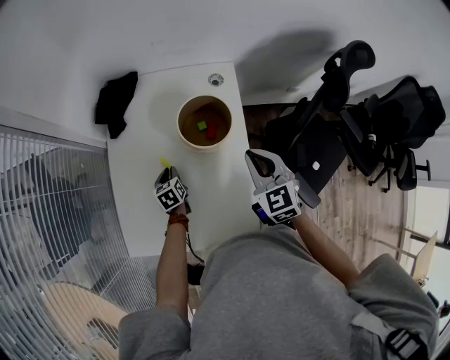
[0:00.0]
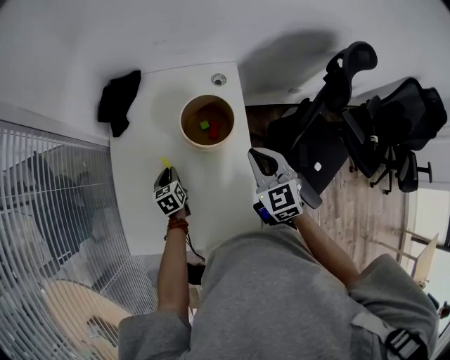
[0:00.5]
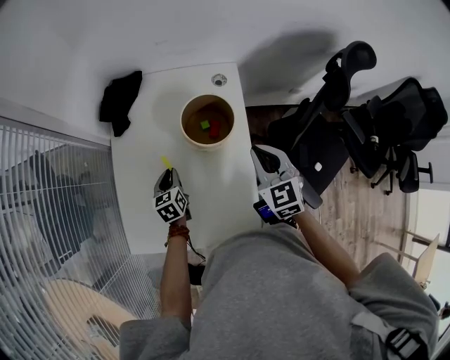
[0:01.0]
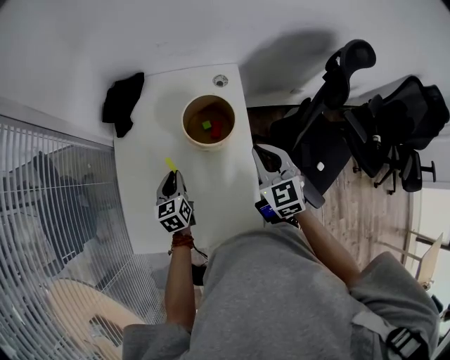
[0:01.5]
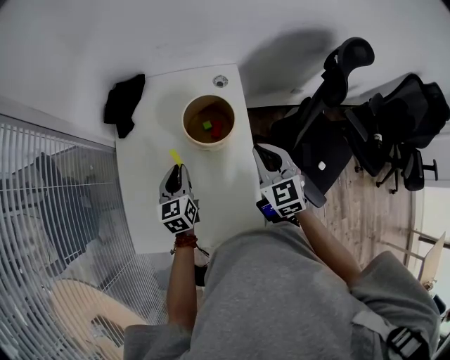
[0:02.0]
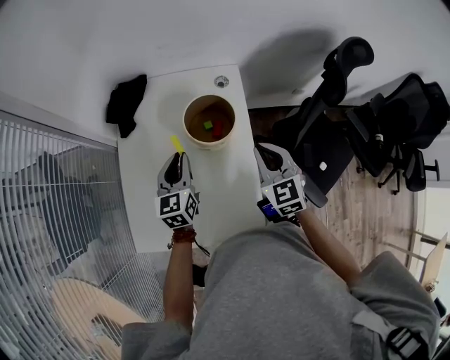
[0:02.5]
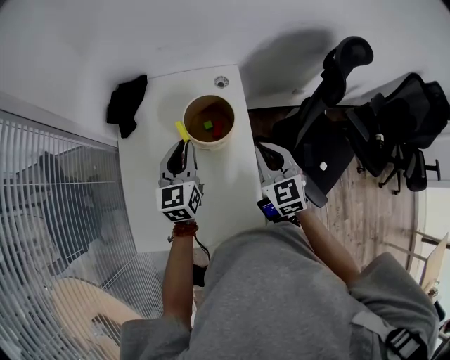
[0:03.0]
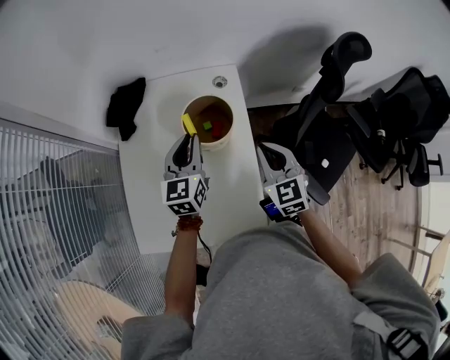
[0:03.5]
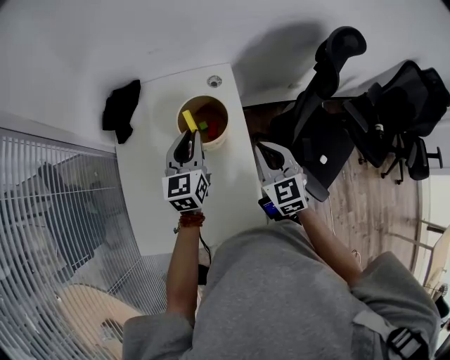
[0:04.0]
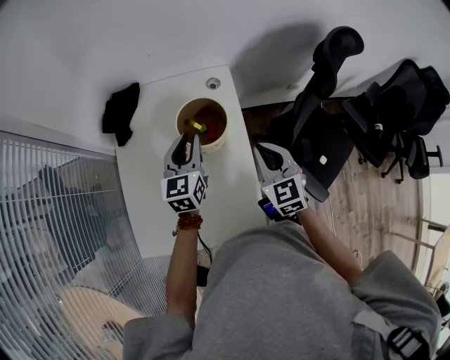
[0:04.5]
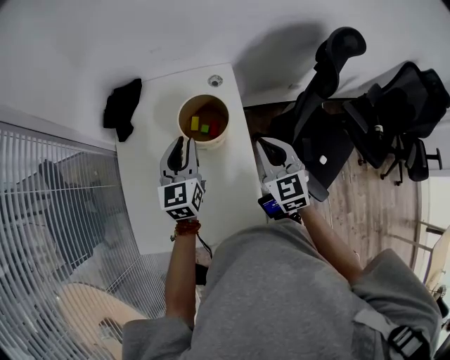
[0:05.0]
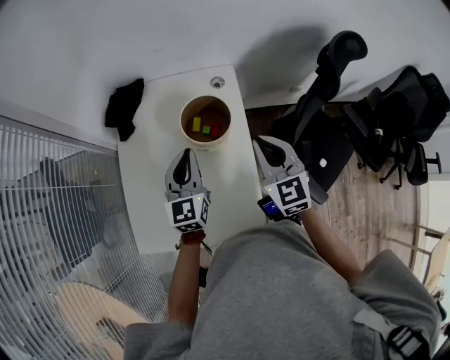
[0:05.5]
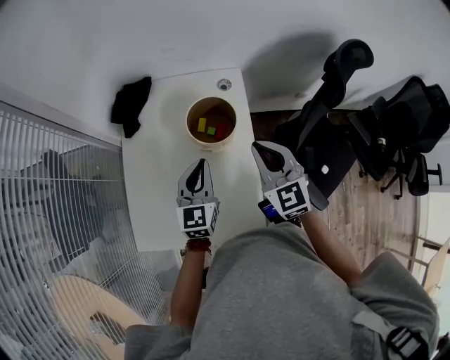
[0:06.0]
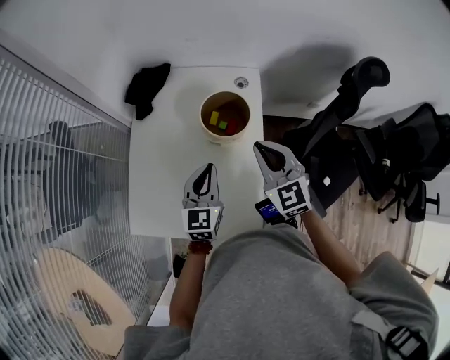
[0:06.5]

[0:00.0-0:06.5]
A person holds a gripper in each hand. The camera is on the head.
0:00.0 to 0:02.0: The left gripper goes about 15 cm upward, and changes its angle by some 30 degrees.
0:02.0 to 0:04.5: The left gripper is displaced upward, to the right and forward by some 15 cm.
0:04.5 to 0:06.5: The left gripper travels backward by roughly 10 cm, and closes, while the right gripper goes some 10 cm to the left and upward.

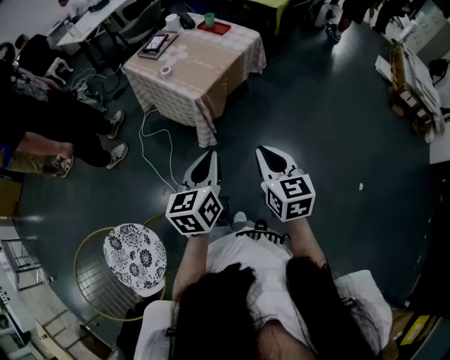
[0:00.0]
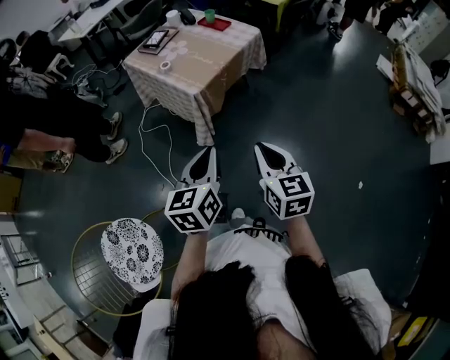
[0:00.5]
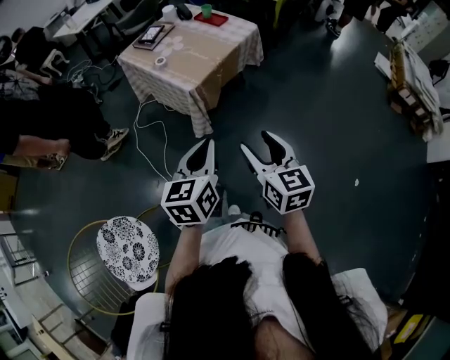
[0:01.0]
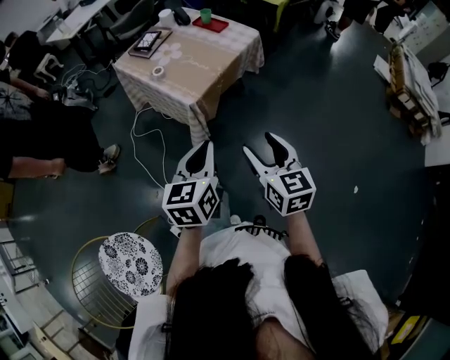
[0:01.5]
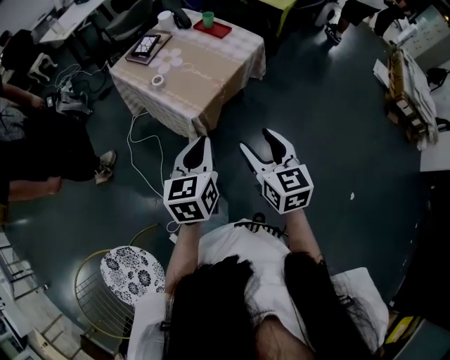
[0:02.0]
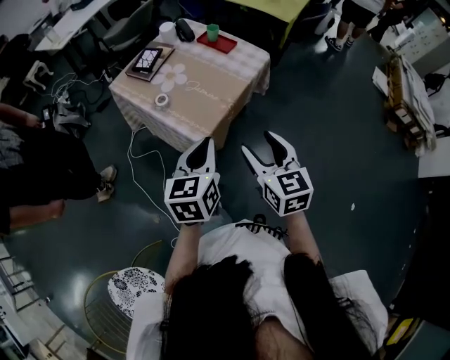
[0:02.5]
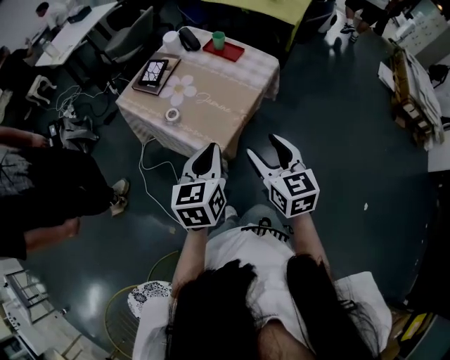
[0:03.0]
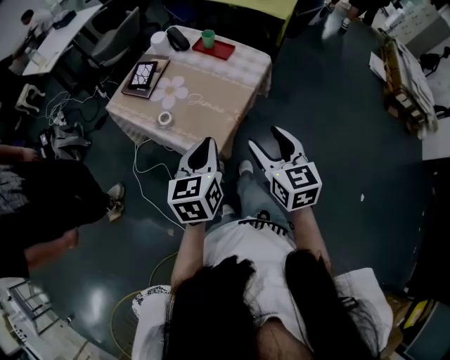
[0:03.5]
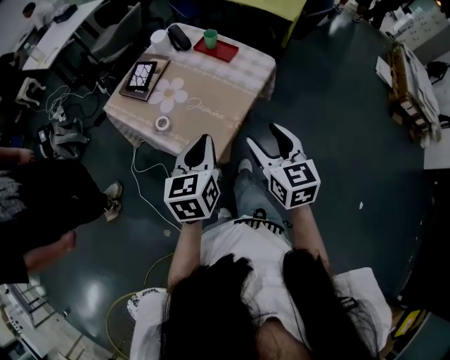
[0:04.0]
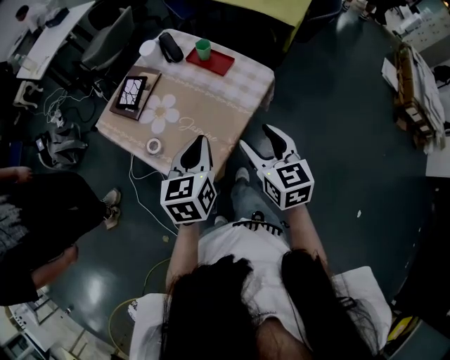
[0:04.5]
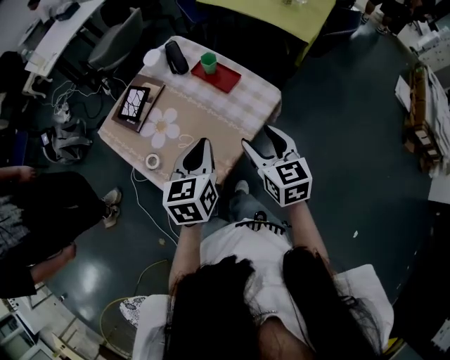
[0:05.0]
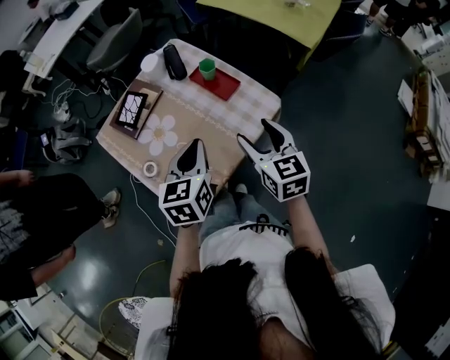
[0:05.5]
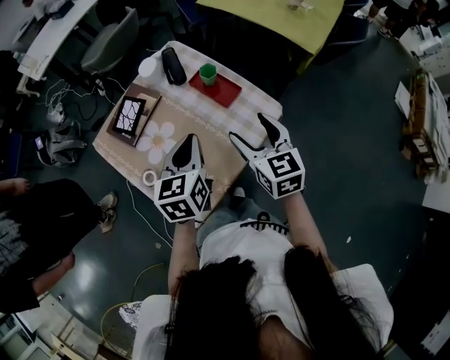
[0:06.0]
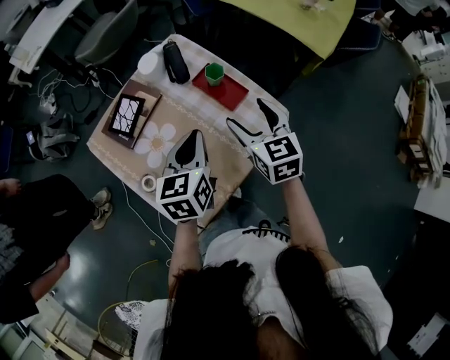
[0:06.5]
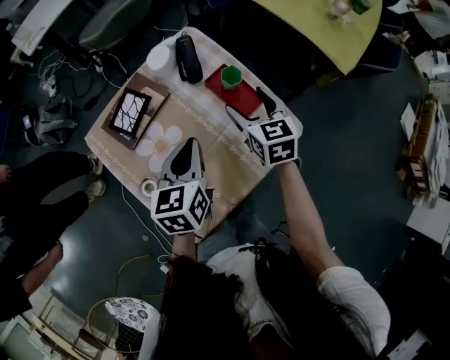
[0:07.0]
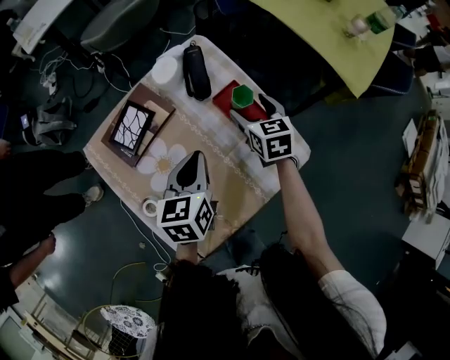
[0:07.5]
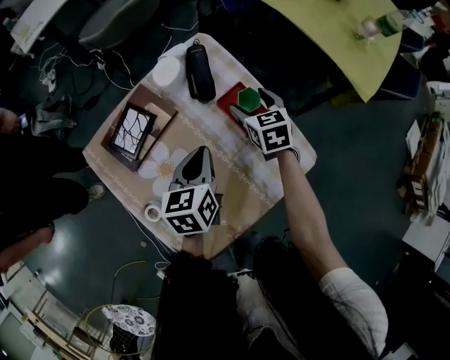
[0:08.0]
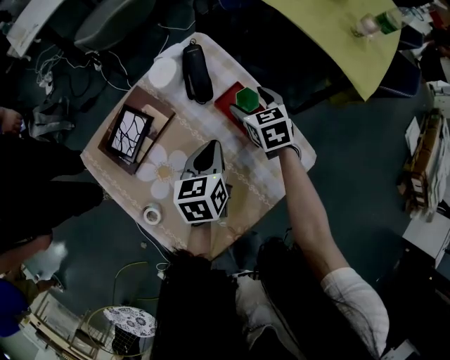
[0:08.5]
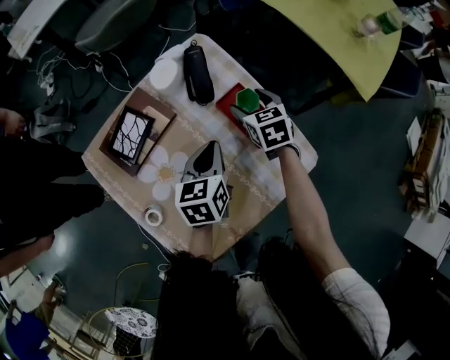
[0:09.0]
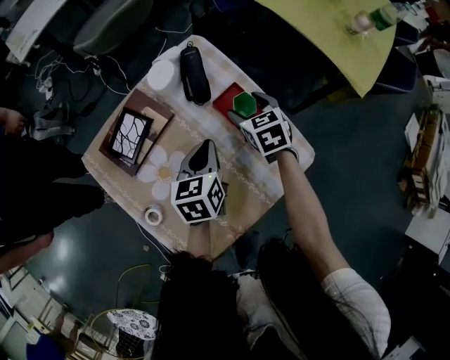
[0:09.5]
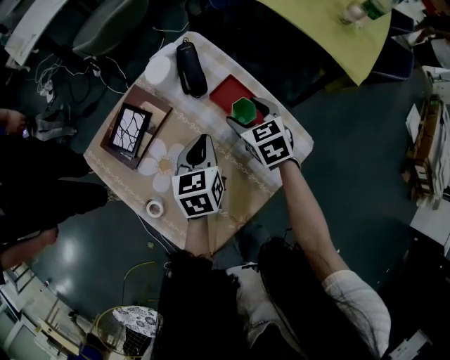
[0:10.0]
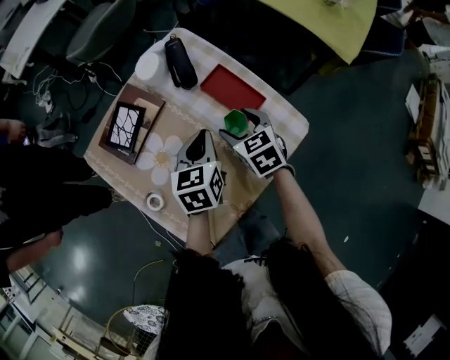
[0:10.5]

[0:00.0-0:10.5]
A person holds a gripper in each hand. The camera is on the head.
0:00.0 to 0:02.0: The two grippers go roughly 15 cm forward. The right gripper opens.
0:02.0 to 0:04.0: The grippers both shift forward by about 20 cm.
0:04.0 to 0:06.5: Both grippers move forward, roughly 35 cm.
0:06.5 to 0:08.5: The left gripper moves downward and forward, roughly 15 cm. Meanwhile the right gripper travels forward and downward by about 25 cm.
0:08.5 to 0:10.5: The right gripper travels backward by about 15 cm.

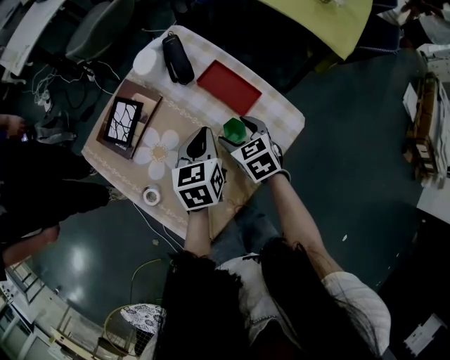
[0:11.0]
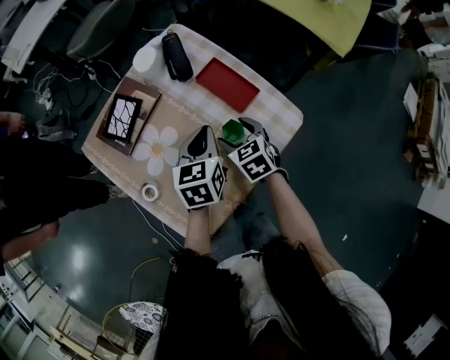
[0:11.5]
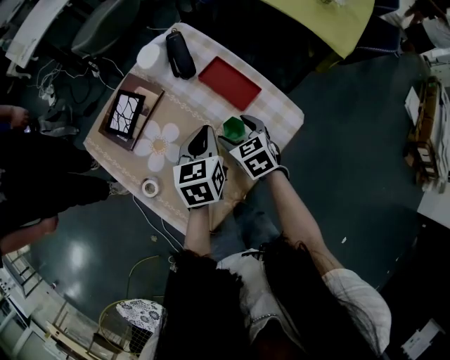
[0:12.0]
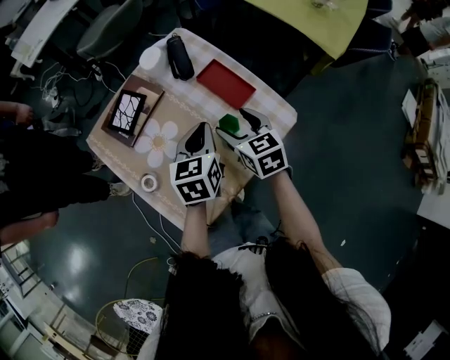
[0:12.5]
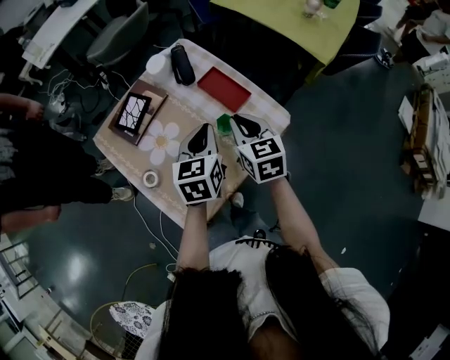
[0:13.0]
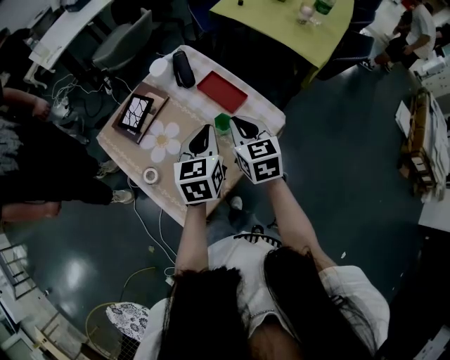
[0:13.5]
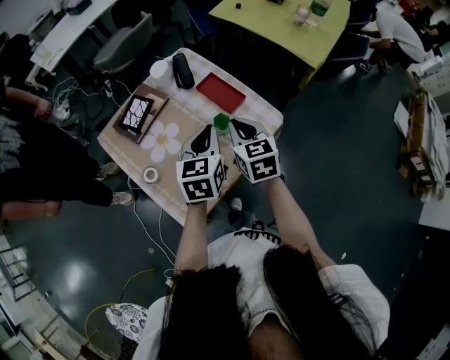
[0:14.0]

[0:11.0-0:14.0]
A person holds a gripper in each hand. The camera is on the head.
0:11.0 to 0:12.5: The left gripper moves some 5 cm. Meanwhile the right gripper moves upward, approximately 10 cm.
0:12.5 to 0:14.0: The grippers both shift upward and backward by roughly 10 cm. The right gripper closes up.

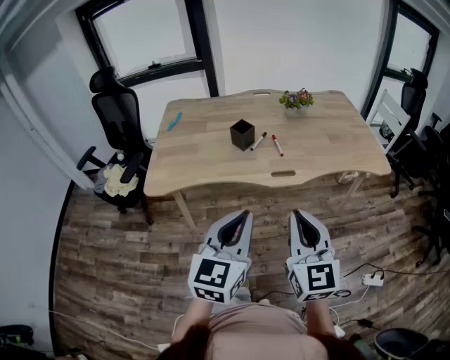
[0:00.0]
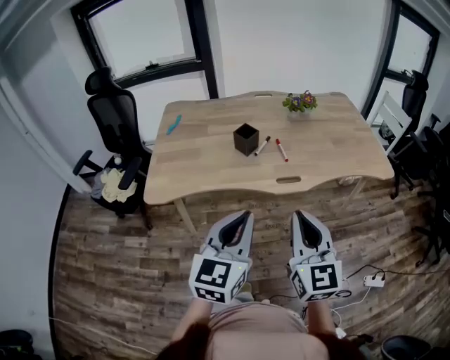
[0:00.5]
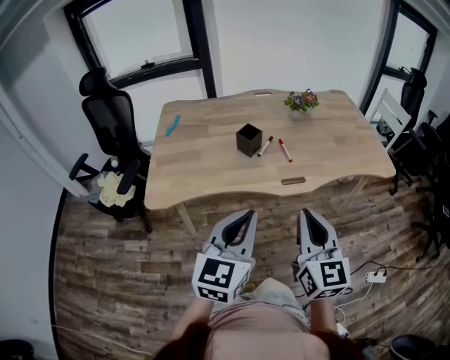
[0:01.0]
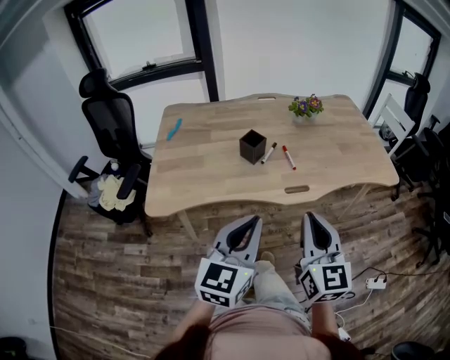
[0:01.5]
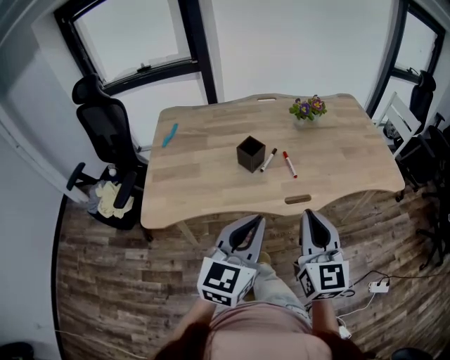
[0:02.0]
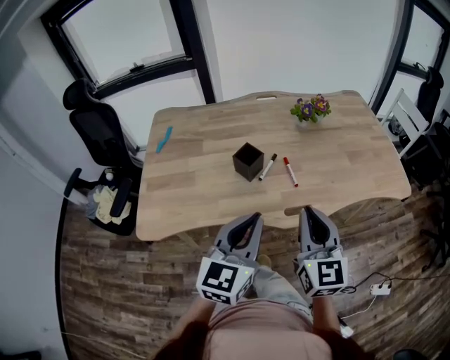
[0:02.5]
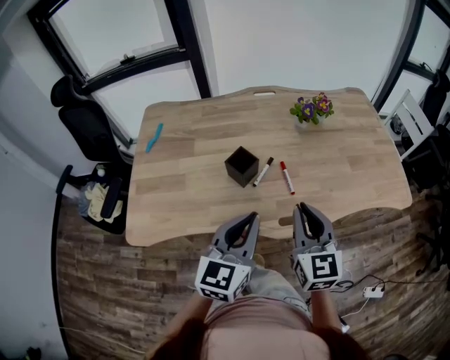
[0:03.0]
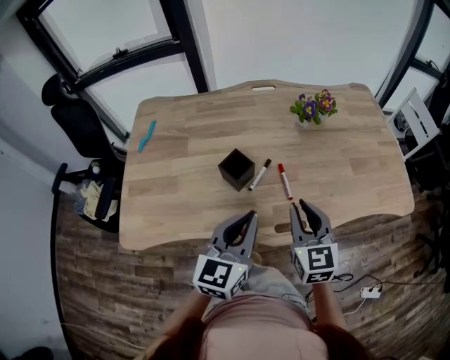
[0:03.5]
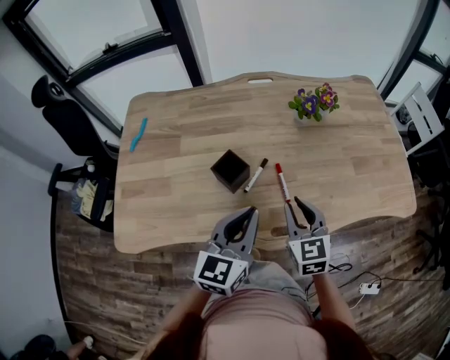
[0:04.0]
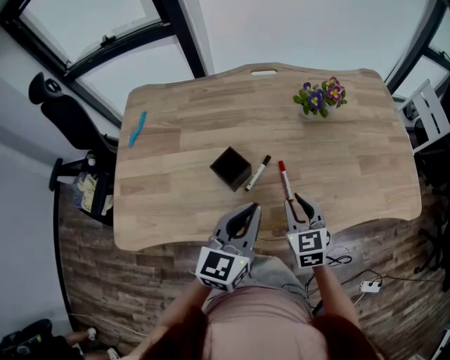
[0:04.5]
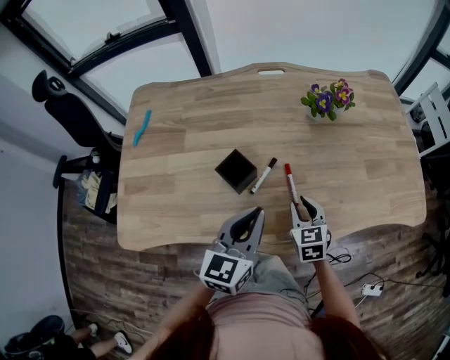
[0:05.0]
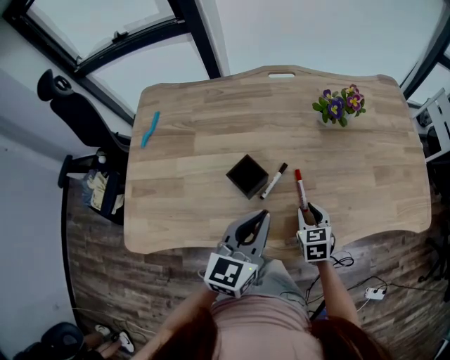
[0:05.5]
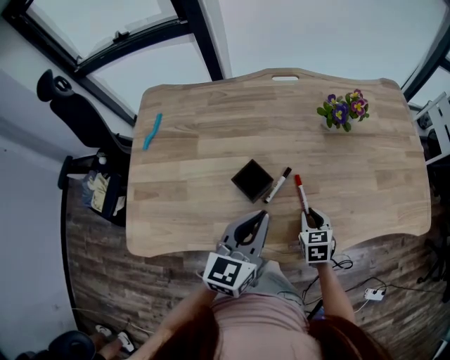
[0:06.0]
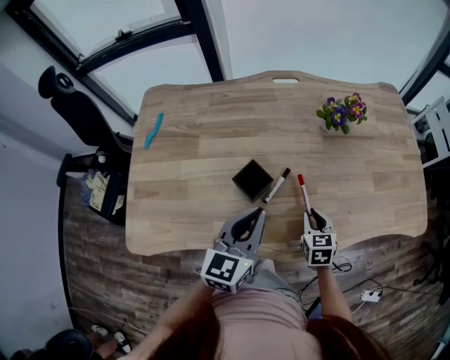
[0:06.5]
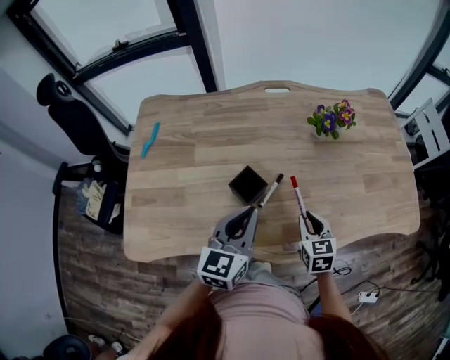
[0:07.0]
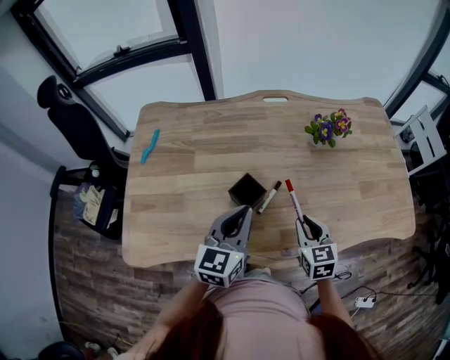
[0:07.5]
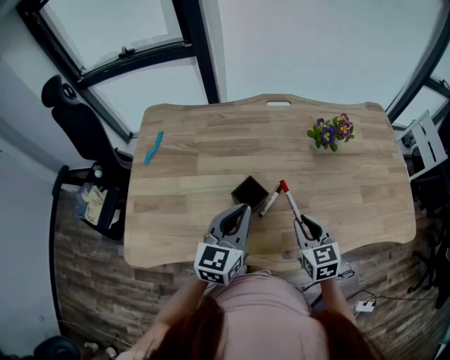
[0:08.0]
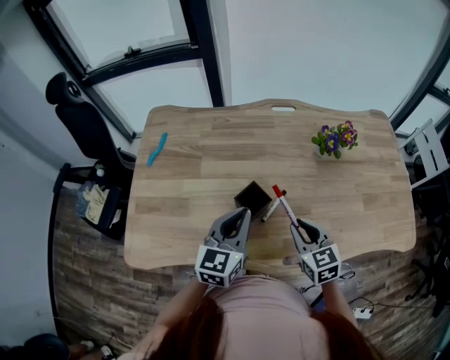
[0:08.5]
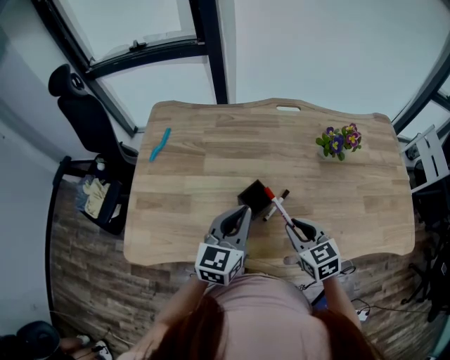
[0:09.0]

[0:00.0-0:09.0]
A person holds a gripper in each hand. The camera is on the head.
0:00.0 to 0:02.0: The two grippers go roughly 15 cm forward.
0:02.0 to 0:04.5: Both grippers travel together forward and downward, roughly 30 cm. The right gripper rotates roughly 30 degrees.
0:04.5 to 0:07.0: The right gripper travels downward and back again, about 10 cm each way; the left gripper travels to the left by some 5 cm.
0:07.0 to 0:09.0: The right gripper travels to the left and upward by roughly 10 cm, and swivels some 20 degrees. The left gripper ends up about 5 cm from where it was.
